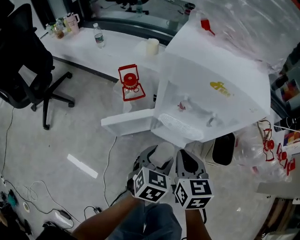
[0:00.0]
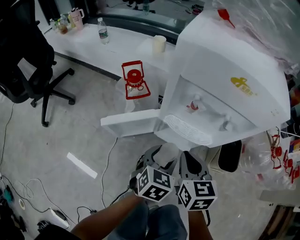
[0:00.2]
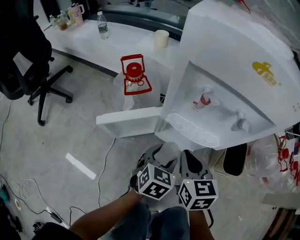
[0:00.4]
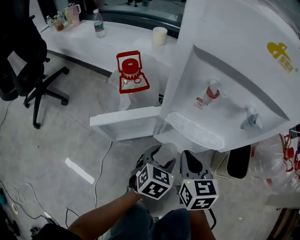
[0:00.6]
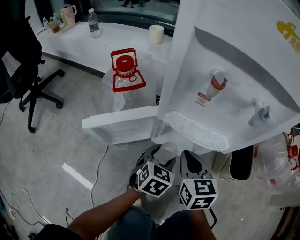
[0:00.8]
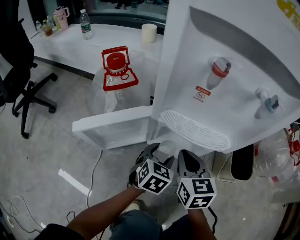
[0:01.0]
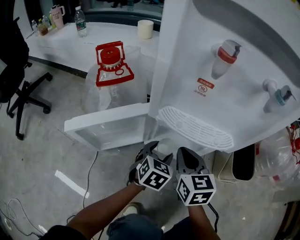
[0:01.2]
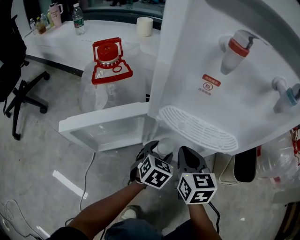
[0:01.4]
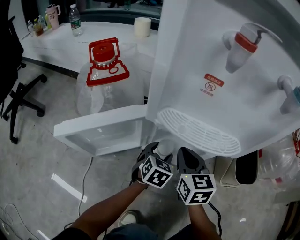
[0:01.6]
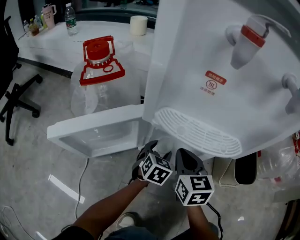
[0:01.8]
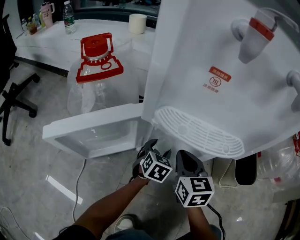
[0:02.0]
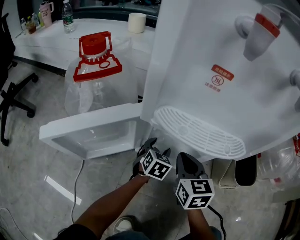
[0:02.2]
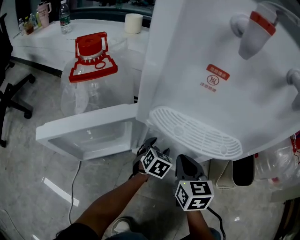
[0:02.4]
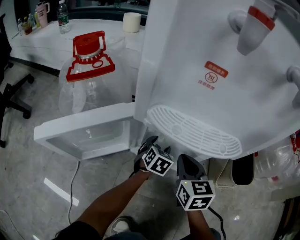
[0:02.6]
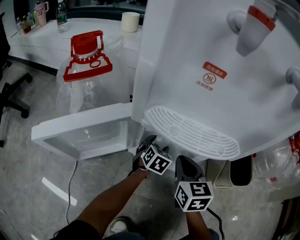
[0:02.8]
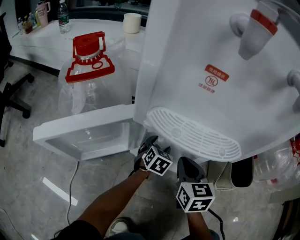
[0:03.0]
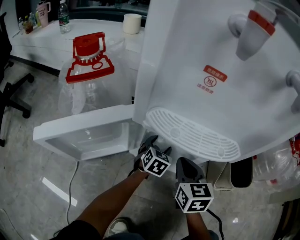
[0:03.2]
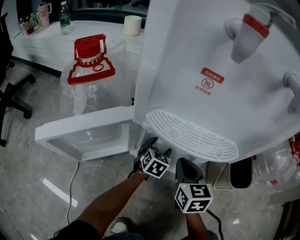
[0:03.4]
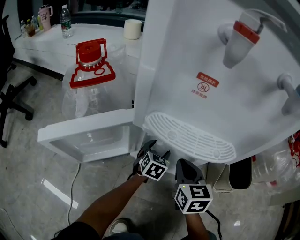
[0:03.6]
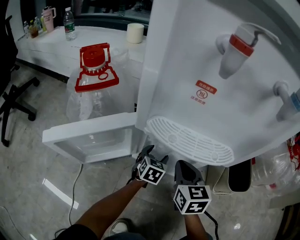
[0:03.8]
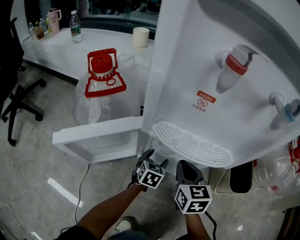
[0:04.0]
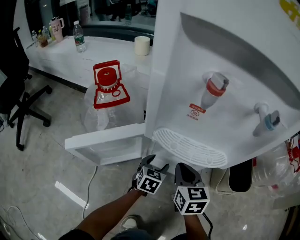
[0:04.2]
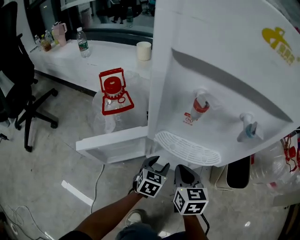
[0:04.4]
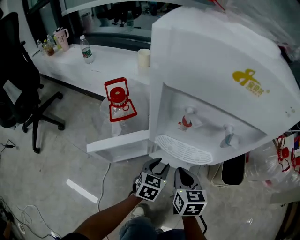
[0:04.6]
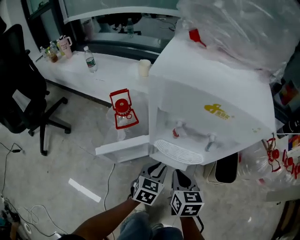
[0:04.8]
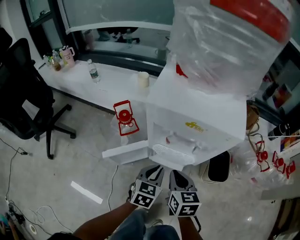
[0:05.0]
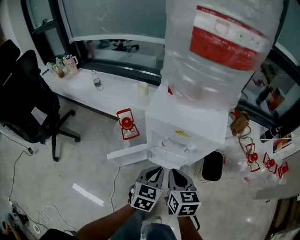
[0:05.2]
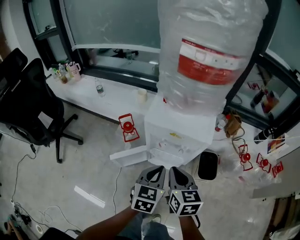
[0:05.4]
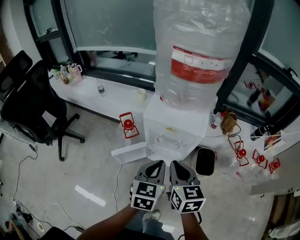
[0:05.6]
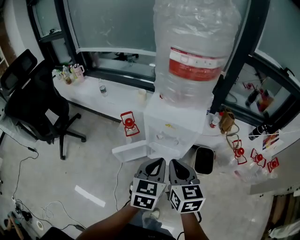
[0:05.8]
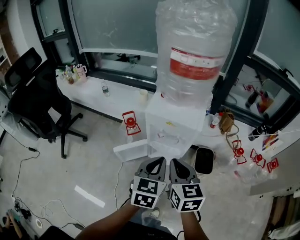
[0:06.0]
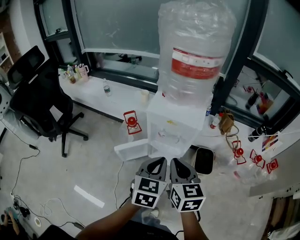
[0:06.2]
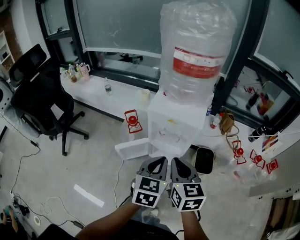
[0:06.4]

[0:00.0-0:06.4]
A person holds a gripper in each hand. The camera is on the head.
0:00.0 to 0:01.6: The grippers both shift downward and forward by roughly 35 cm.
0:01.6 to 0:03.2: The left gripper shifts some 10 cm forward and downward; the right gripper changes place by some 5 cm.
0:03.2 to 0:04.8: The left gripper moves upward and backward, approximately 35 cm, and closes its fingers, while the right gripper is displaced upward by approximately 25 cm.
0:04.8 to 0:06.4: The two grippers go roughly 40 cm upward.

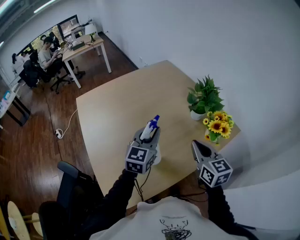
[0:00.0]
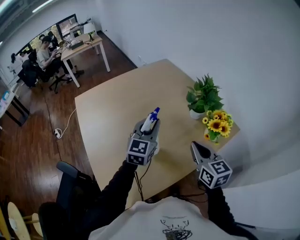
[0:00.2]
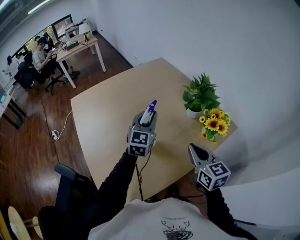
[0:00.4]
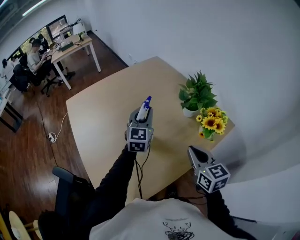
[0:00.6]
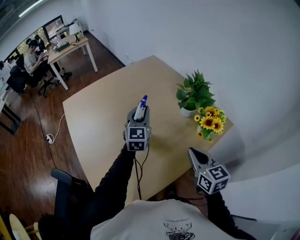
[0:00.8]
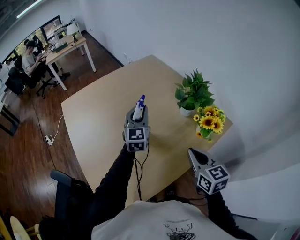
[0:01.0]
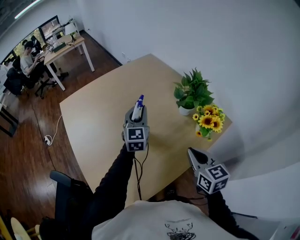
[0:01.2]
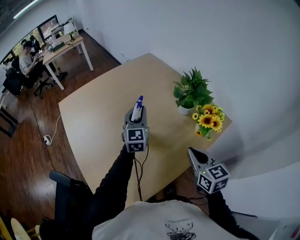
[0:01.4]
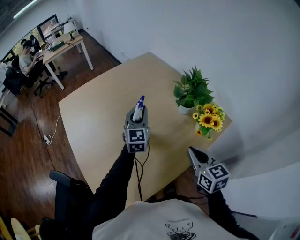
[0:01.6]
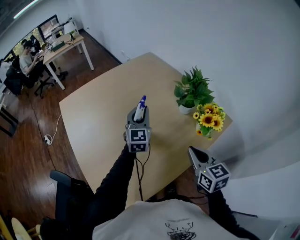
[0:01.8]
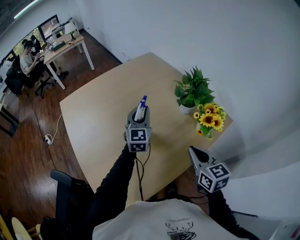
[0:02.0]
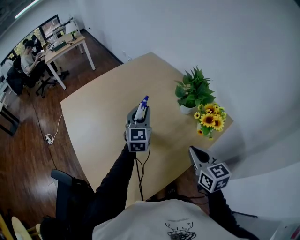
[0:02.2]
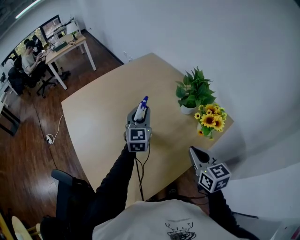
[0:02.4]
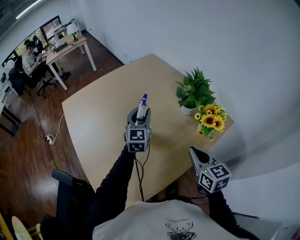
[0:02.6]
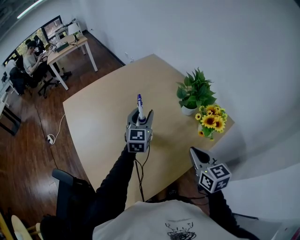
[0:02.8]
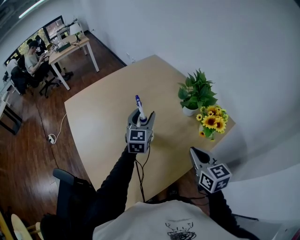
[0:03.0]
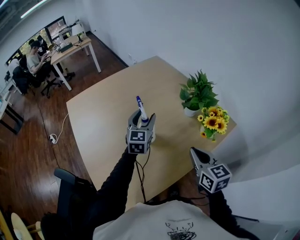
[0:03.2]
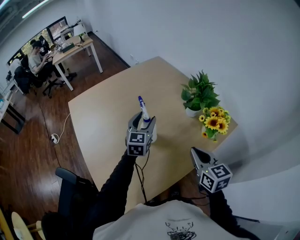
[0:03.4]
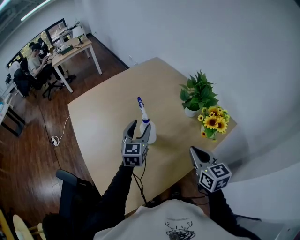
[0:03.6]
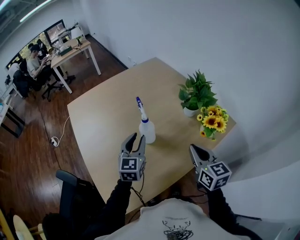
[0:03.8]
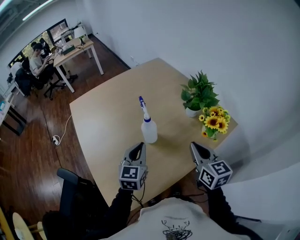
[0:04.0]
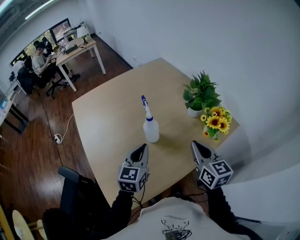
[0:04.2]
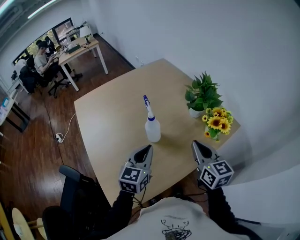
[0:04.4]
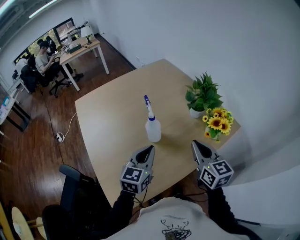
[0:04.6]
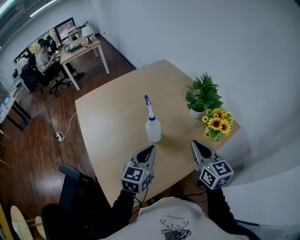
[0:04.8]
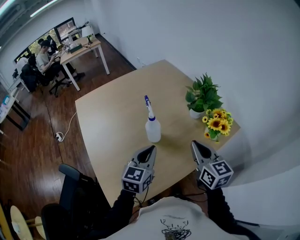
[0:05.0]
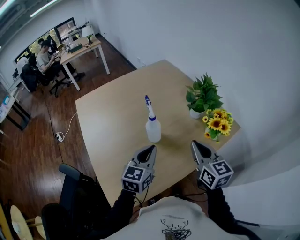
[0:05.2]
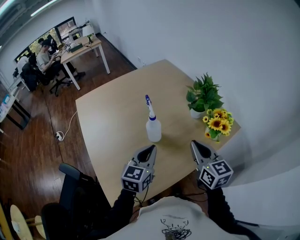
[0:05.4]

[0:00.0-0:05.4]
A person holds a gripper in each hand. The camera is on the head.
0:00.0 to 0:01.4: The left gripper goes about 15 cm forward.
0:01.4 to 0:02.8: The left gripper opens its fingers.
0:02.8 to 0:04.0: The left gripper shifts some 15 cm backward, and closes up.
0:04.0 to 0:05.4: The left gripper moves approximately 5 cm.

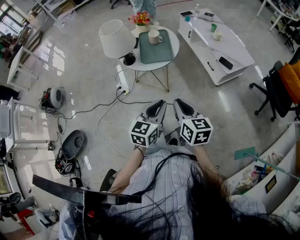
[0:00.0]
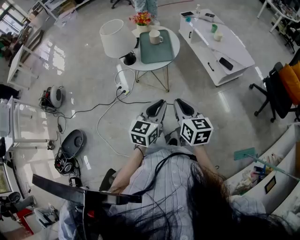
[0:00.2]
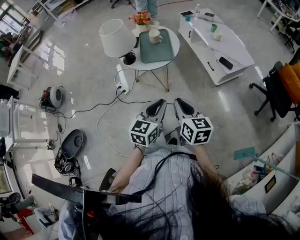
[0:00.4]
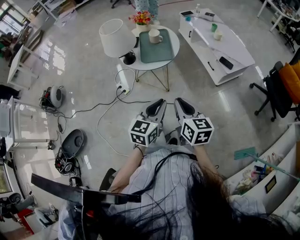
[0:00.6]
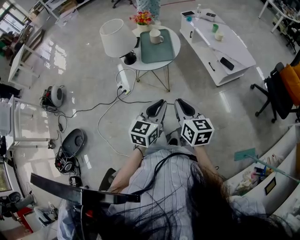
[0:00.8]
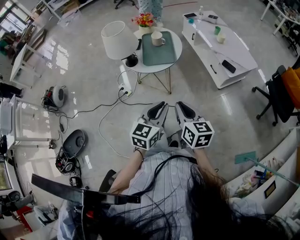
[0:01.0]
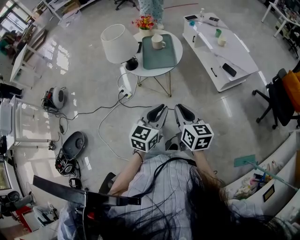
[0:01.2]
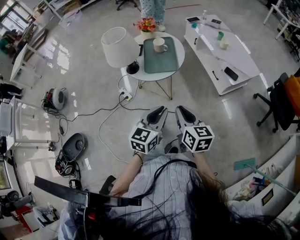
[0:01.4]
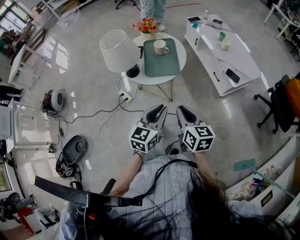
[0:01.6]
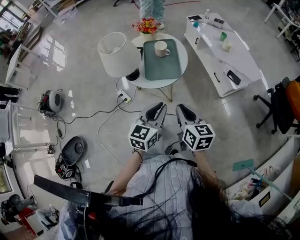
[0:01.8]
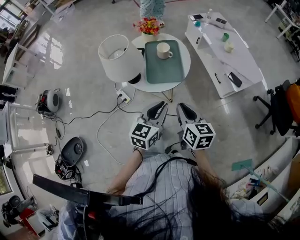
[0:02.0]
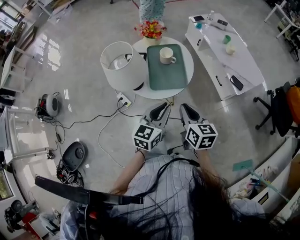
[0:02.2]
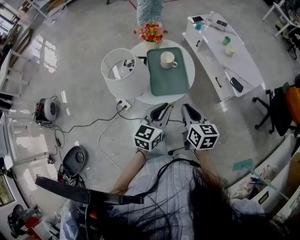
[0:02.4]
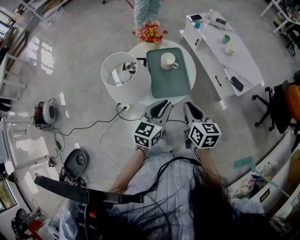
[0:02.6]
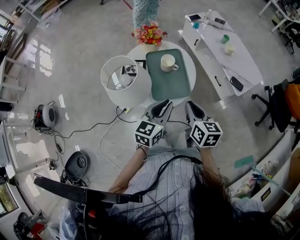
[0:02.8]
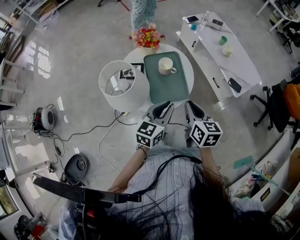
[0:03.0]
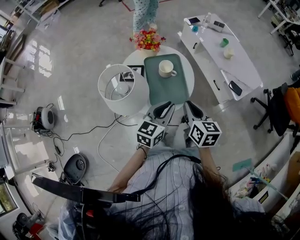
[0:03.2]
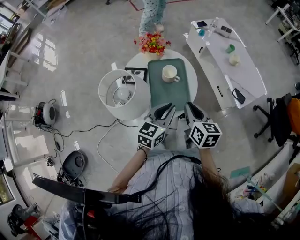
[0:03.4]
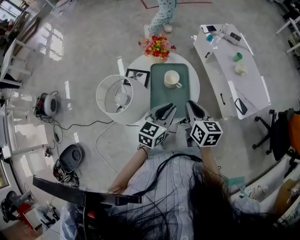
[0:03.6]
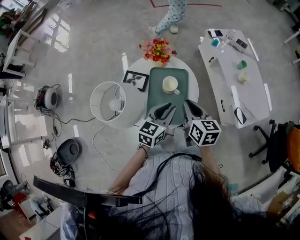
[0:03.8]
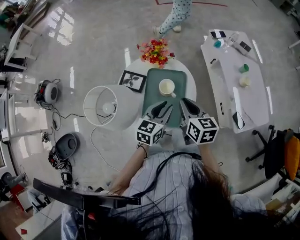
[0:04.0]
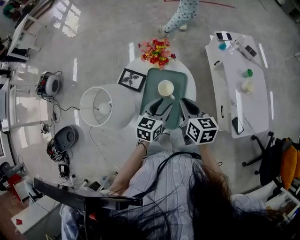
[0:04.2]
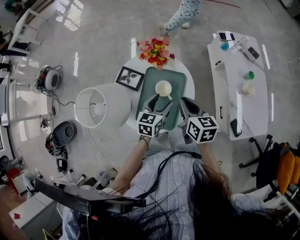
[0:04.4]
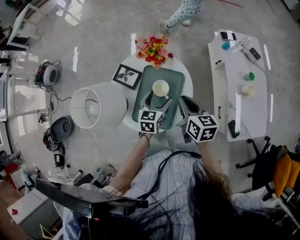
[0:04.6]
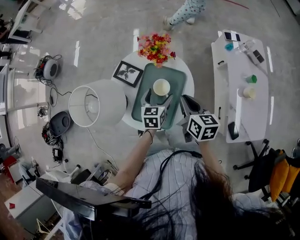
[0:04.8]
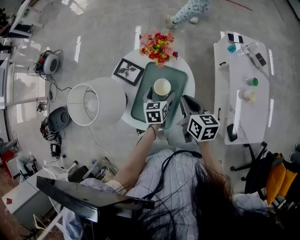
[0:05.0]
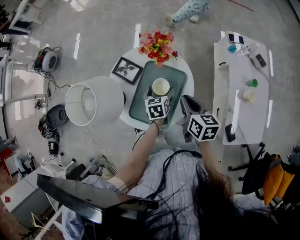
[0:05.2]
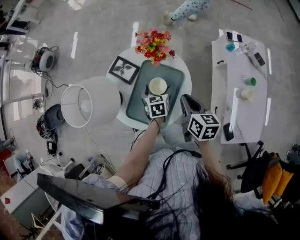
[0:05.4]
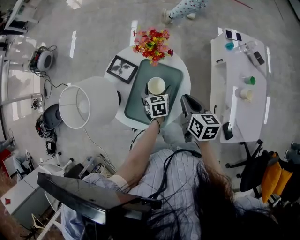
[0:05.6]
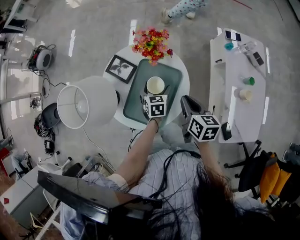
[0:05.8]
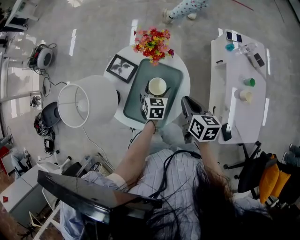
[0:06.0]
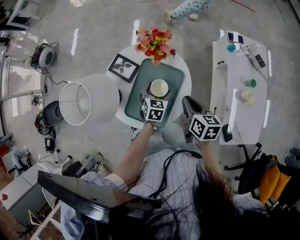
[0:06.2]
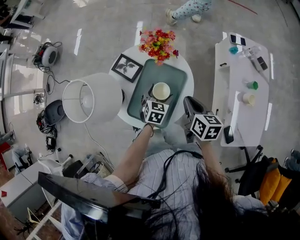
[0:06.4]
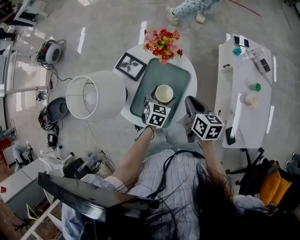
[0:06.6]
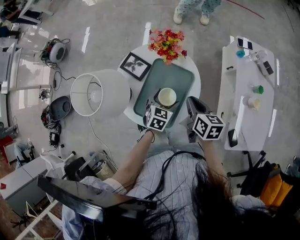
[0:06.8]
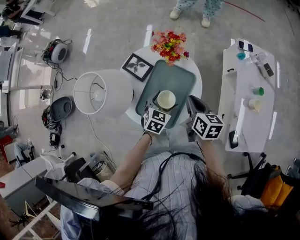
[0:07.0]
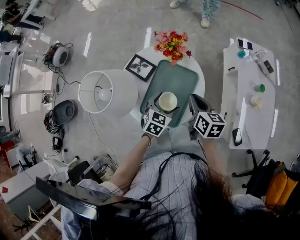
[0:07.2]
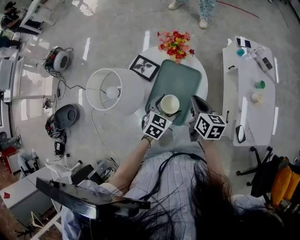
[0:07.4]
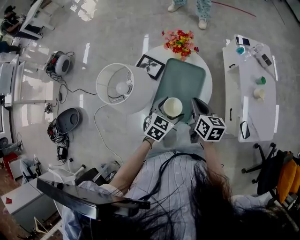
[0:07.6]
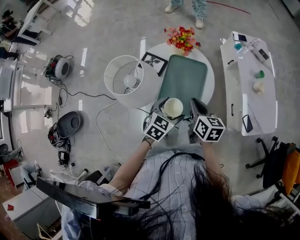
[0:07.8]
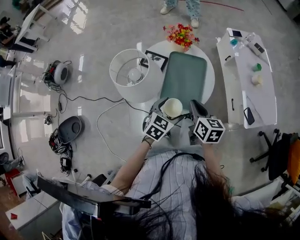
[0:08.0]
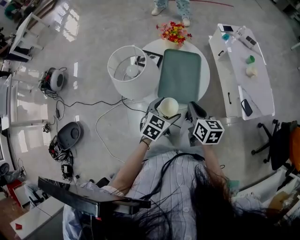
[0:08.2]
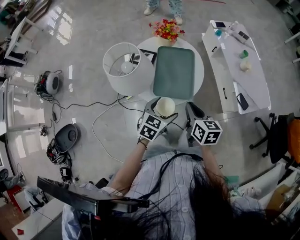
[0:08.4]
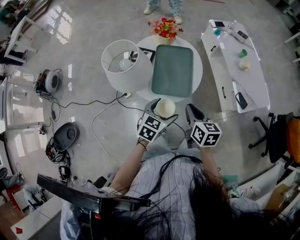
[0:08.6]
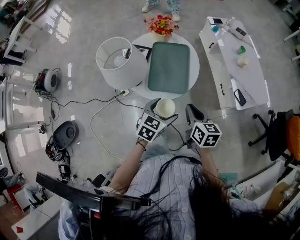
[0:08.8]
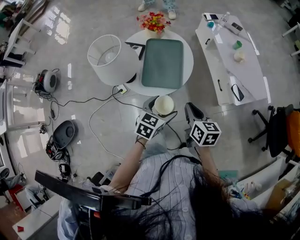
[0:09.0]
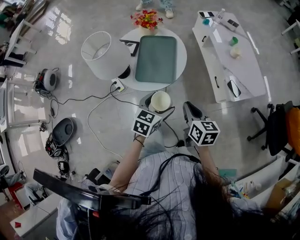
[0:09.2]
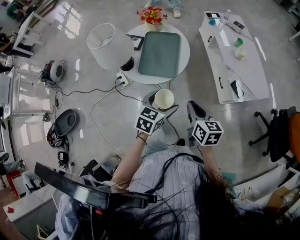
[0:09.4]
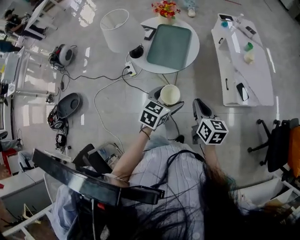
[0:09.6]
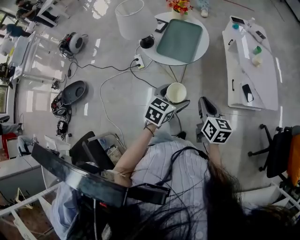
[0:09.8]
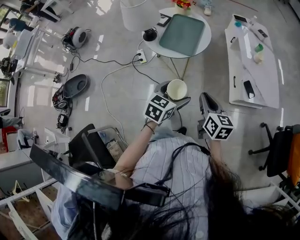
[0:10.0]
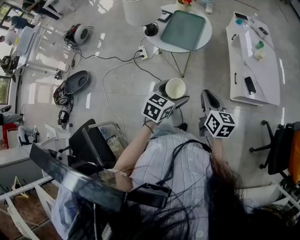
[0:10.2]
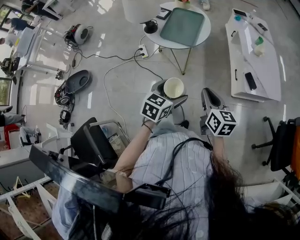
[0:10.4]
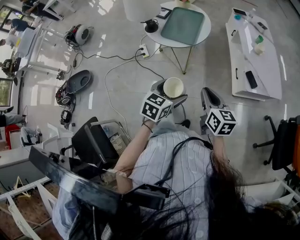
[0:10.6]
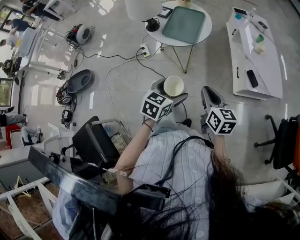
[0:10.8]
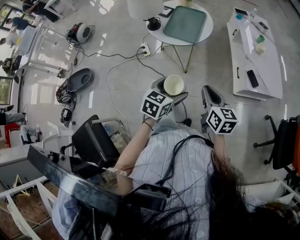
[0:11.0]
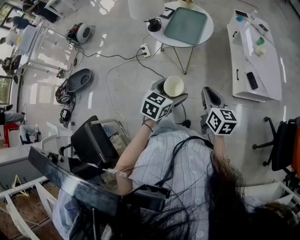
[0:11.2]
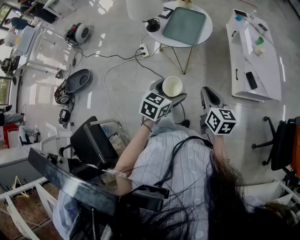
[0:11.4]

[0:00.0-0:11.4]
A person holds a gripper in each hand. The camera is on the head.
0:00.0 to 0:01.4: The right gripper travels forward by roughly 5 cm.
0:01.4 to 0:02.8: The right gripper goes some 25 cm forward; the left gripper shifts some 25 cm forward and to the left.
0:02.8 to 0:04.2: The right gripper moves about 20 cm, and swivels some 30 degrees, while the left gripper shifts by some 20 cm, and turns by roughly 20 degrees.
0:04.2 to 0:05.6: The right gripper travels to the right and downward by some 10 cm. The left gripper goes about 15 cm downward and forward, swivels roughly 40 degrees, and opens up.
0:05.6 to 0:07.2: The left gripper shifts about 10 cm backward and upward, and changes its angle by about 30 degrees.
0:07.2 to 0:08.6: The grippers both shift backward by about 25 cm. The left gripper swivels approximately 20 degrees.
0:08.6 to 0:10.0: Both grippers travel together backward and to the right, some 25 cm.
0:10.0 to 0:11.4: The two grippers go some 5 cm backward.
